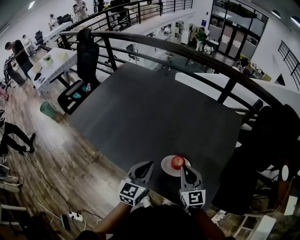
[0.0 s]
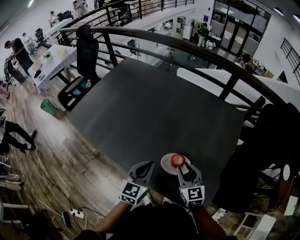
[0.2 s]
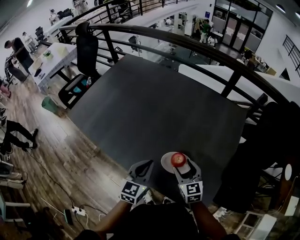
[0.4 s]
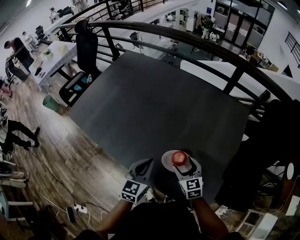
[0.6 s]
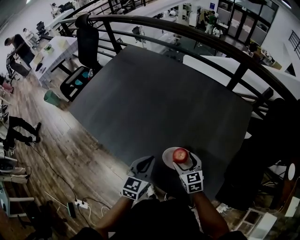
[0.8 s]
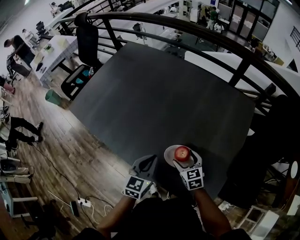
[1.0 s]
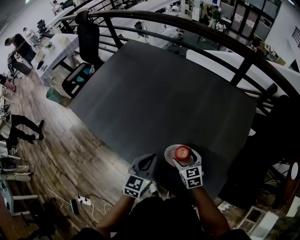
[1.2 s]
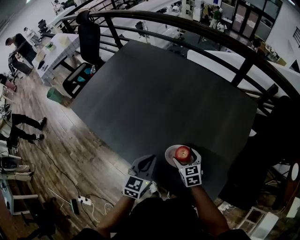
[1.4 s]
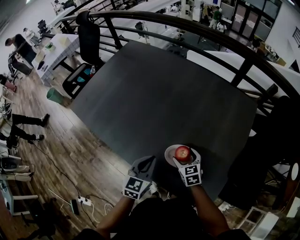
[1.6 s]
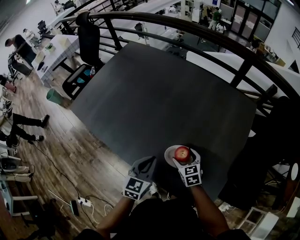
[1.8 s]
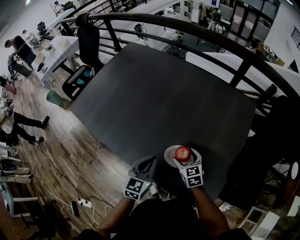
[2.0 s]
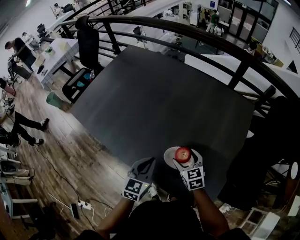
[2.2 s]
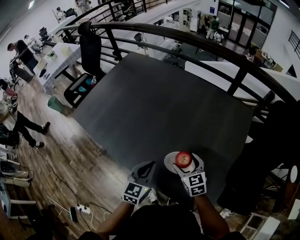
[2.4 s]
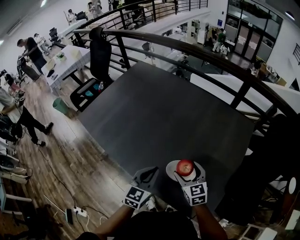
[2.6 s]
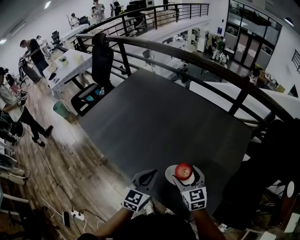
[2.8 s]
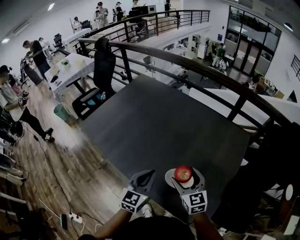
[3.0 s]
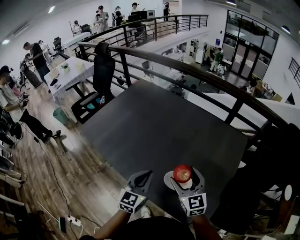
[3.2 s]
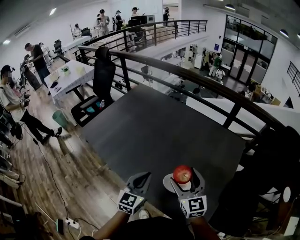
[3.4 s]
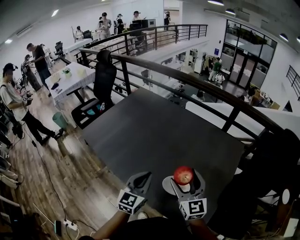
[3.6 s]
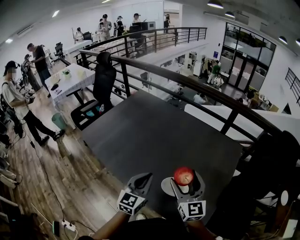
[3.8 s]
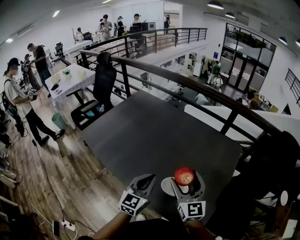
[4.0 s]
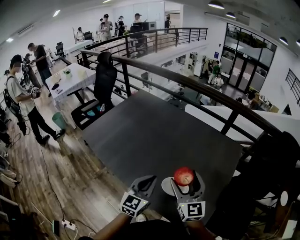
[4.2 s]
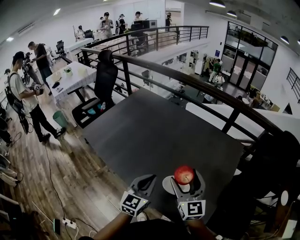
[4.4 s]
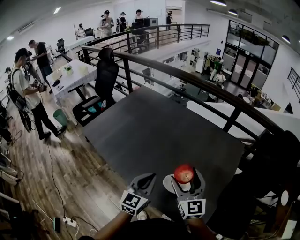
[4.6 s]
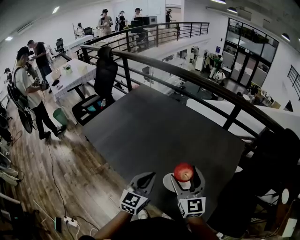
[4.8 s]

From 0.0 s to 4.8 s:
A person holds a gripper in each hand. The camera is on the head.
From 0.0 s to 1.6 s: The right gripper goes roughly 15 cm downward, rotates about 30 degrees, and opens up, while the left gripper moves downward, about 10 cm.
From 1.6 s to 3.2 s: The left gripper heads upward, covering about 10 cm. Meanwhile the right gripper shifts some 25 cm upward, and turns by about 30 degrees.
From 3.2 s to 4.8 s: The right gripper goes about 5 cm upward.

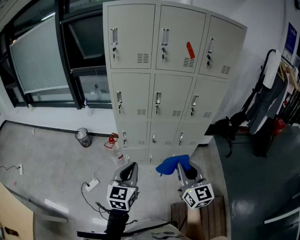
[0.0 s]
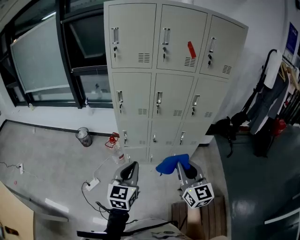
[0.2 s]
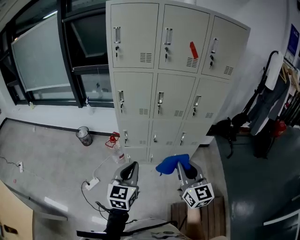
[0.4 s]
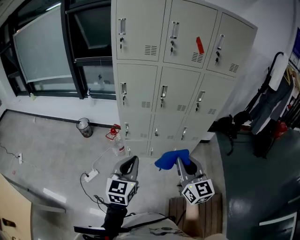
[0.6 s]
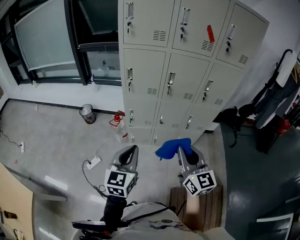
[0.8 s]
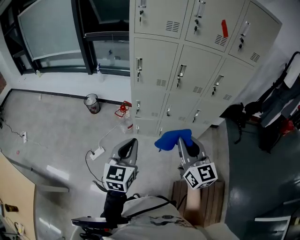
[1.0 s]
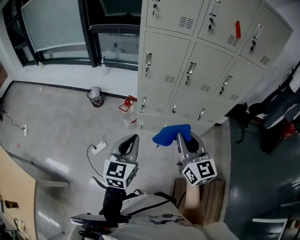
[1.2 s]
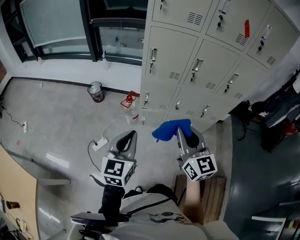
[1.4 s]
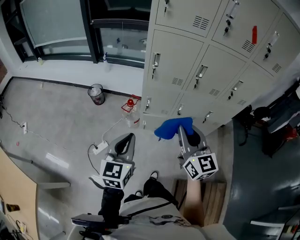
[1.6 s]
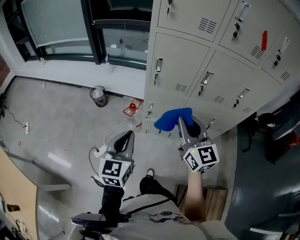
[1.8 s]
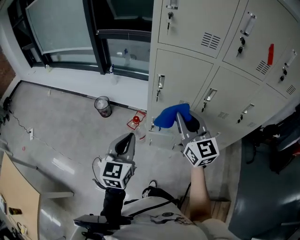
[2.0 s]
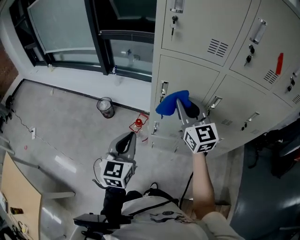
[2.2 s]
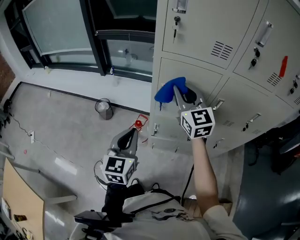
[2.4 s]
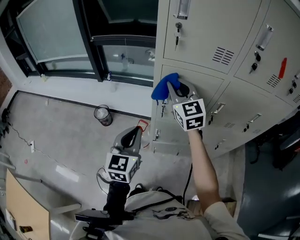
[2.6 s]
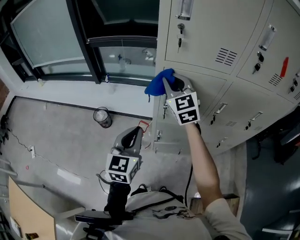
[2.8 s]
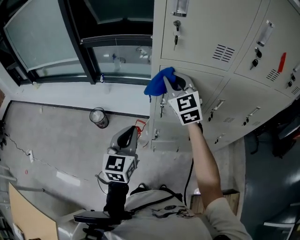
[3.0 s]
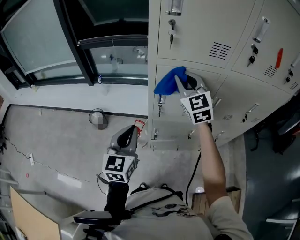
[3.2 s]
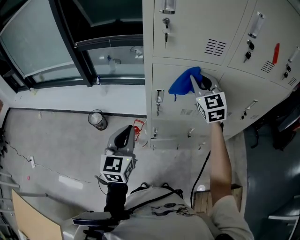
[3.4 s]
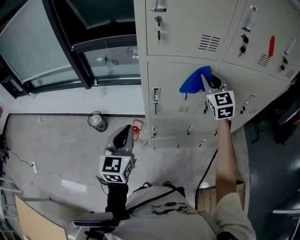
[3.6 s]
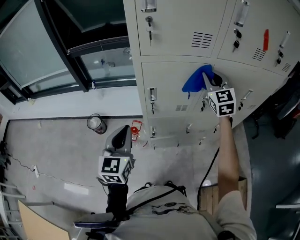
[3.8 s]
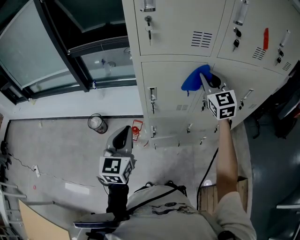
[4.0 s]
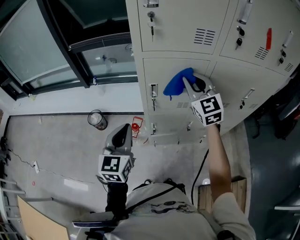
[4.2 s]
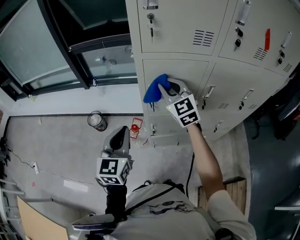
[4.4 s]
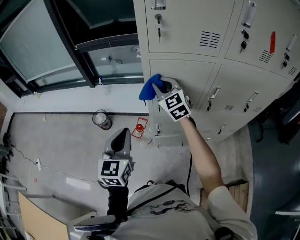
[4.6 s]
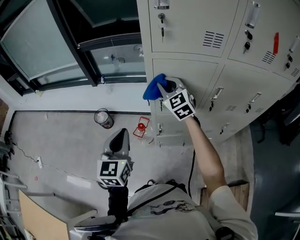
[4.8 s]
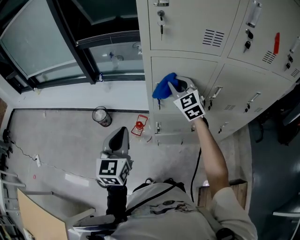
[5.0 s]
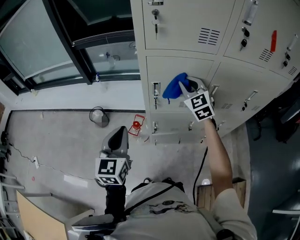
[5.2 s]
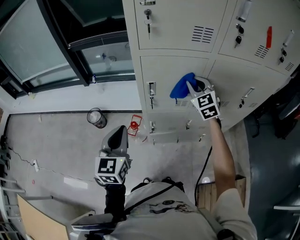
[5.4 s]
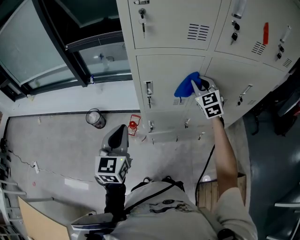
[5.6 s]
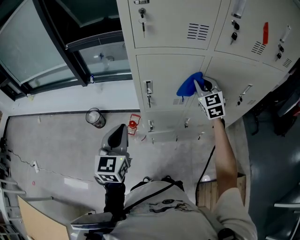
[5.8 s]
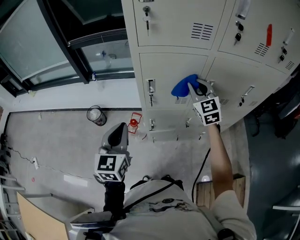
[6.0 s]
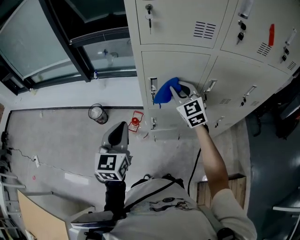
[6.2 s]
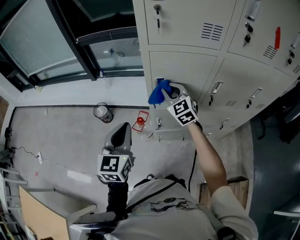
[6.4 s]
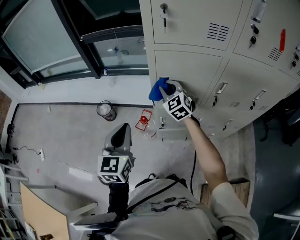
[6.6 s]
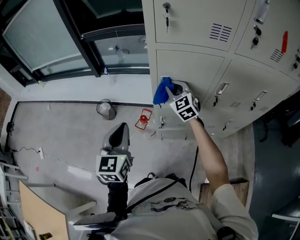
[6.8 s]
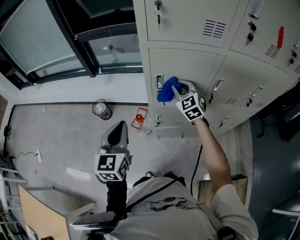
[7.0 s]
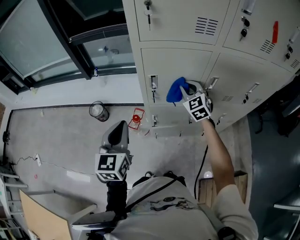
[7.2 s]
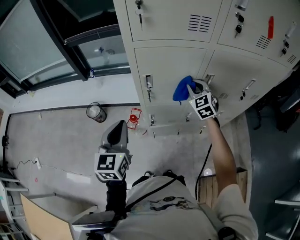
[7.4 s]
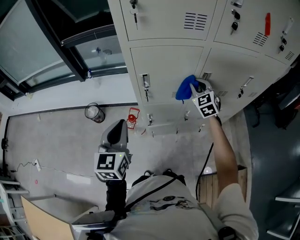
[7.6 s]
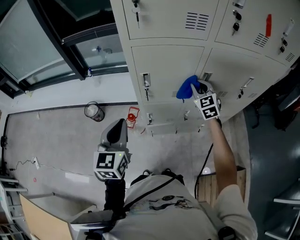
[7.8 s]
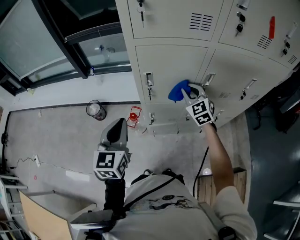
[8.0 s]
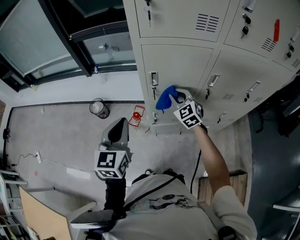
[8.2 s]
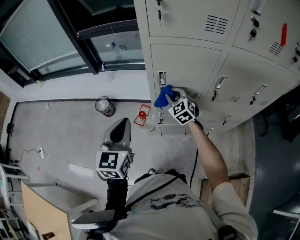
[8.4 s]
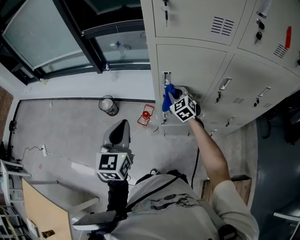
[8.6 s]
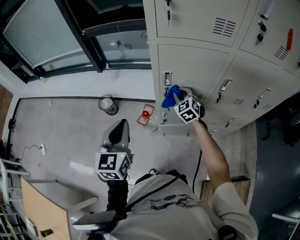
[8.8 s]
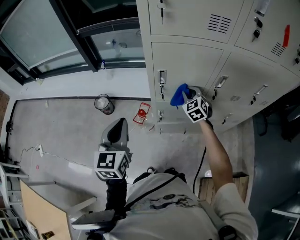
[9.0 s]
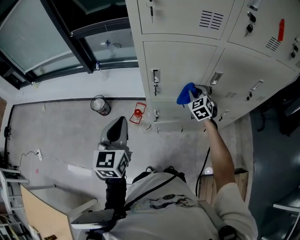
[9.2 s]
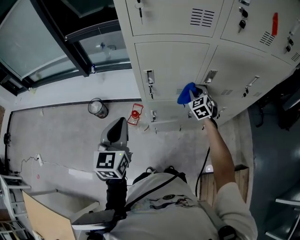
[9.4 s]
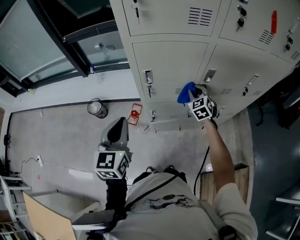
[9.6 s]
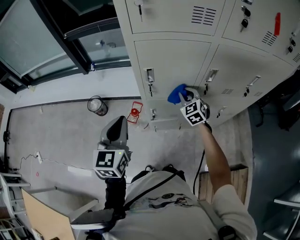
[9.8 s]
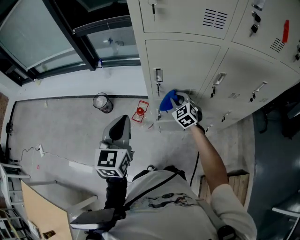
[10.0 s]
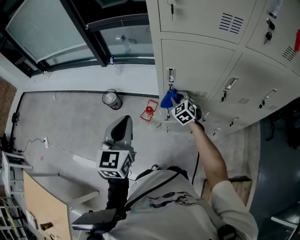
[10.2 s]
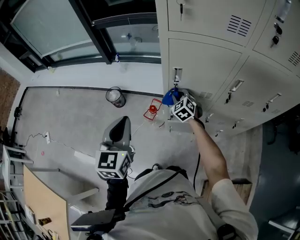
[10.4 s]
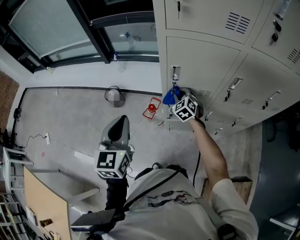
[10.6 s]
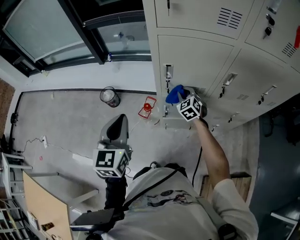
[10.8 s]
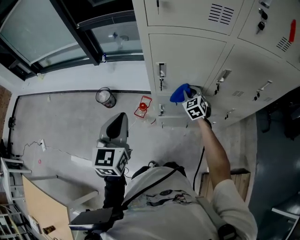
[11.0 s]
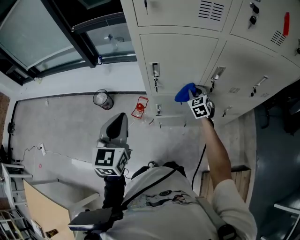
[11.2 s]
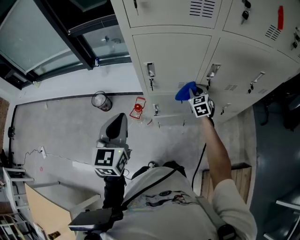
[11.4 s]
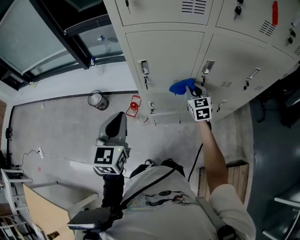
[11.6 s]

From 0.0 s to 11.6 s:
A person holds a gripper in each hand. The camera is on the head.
From 0.0 s to 1.4 s: The left gripper is displaced to the left by approximately 15 cm; the right gripper goes some 20 cm to the left and forward.
From 1.4 s to 2.8 s: The left gripper moves forward, some 30 cm. The right gripper heads forward, covering some 50 cm, and swivels some 20 degrees.
From 2.8 s to 4.4 s: The right gripper reaches some 25 cm to the right, then returns.
From 4.4 s to 5.8 s: The right gripper is displaced to the right by roughly 20 cm.
From 5.8 s to 7.2 s: The right gripper shifts roughly 10 cm to the left and downward.
From 7.2 s to 8.8 s: The right gripper goes some 10 cm to the left and downward.
From 8.8 s to 10.2 s: The right gripper goes approximately 5 cm downward, and moves roughly 15 cm to the right and comes back.
From 10.2 s to 11.6 s: The left gripper heads to the right, covering roughly 5 cm. Meanwhile the right gripper heads to the right, covering some 20 cm, and swivels roughly 30 degrees.

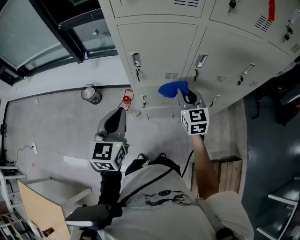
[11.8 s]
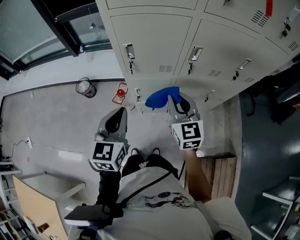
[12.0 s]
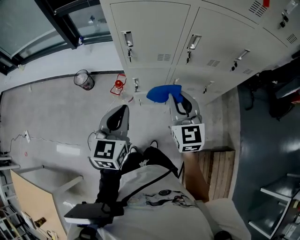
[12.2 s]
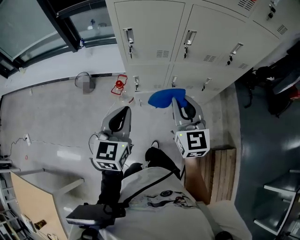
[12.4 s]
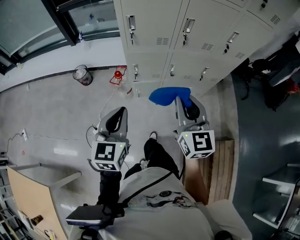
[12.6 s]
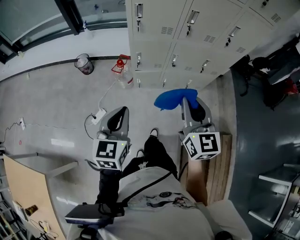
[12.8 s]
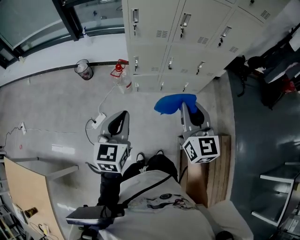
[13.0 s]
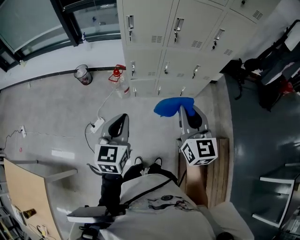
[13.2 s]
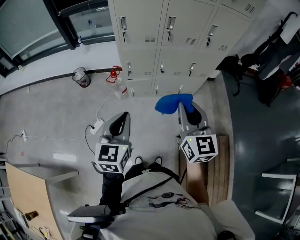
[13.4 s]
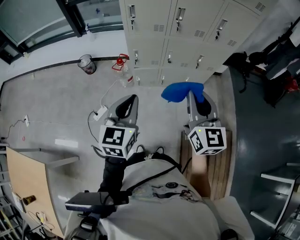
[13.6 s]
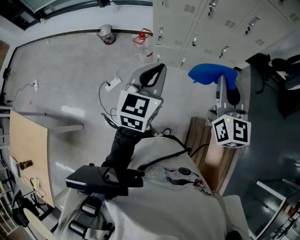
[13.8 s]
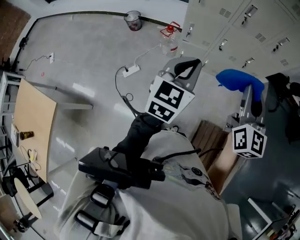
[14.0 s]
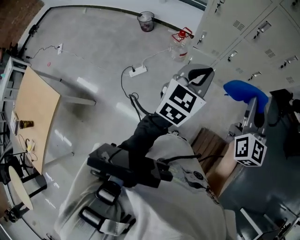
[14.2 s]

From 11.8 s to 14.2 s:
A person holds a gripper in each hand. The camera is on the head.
From 11.8 s to 13.0 s: The two grippers go about 35 cm backward.
From 13.0 s to 14.2 s: The left gripper moves to the right, approximately 10 cm. The right gripper moves some 5 cm.

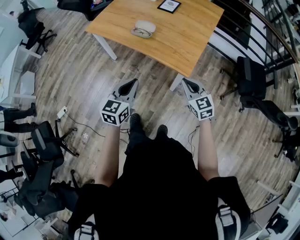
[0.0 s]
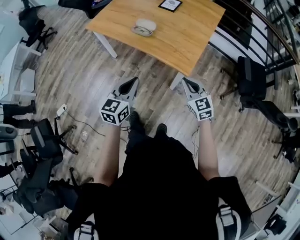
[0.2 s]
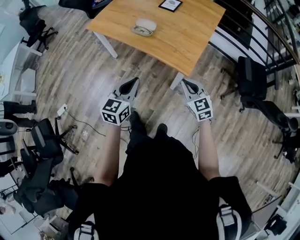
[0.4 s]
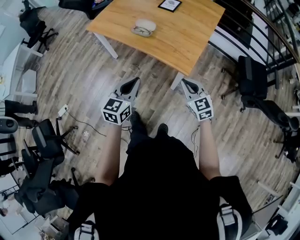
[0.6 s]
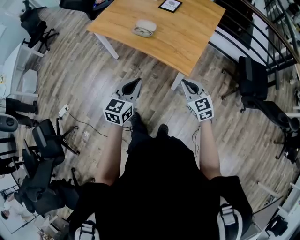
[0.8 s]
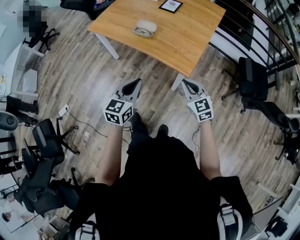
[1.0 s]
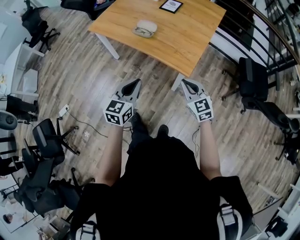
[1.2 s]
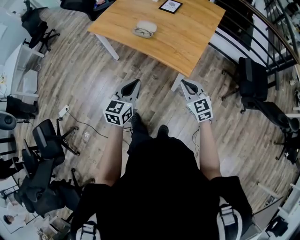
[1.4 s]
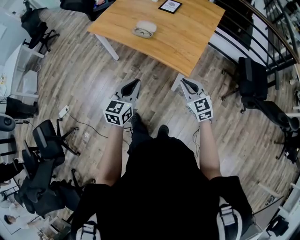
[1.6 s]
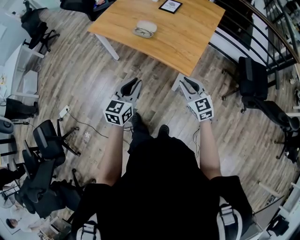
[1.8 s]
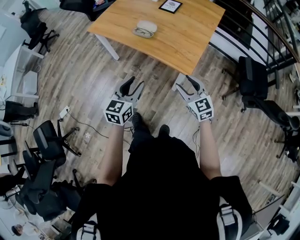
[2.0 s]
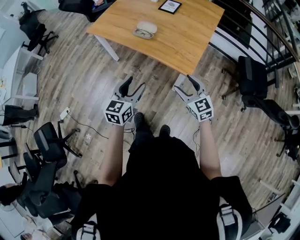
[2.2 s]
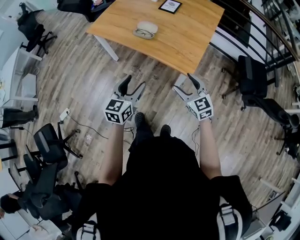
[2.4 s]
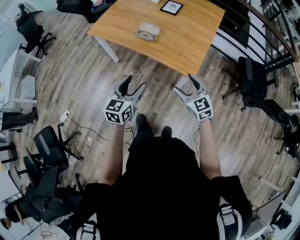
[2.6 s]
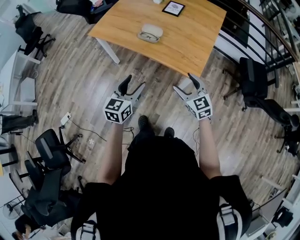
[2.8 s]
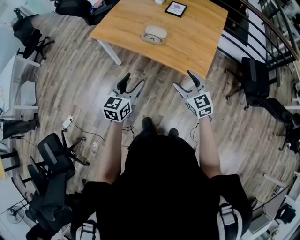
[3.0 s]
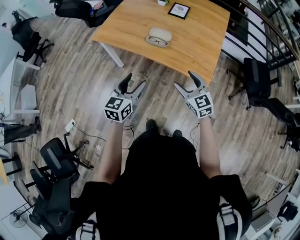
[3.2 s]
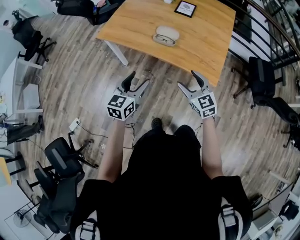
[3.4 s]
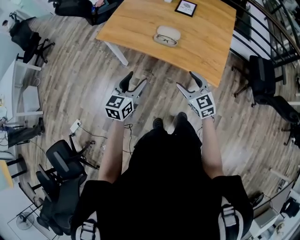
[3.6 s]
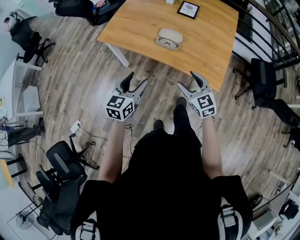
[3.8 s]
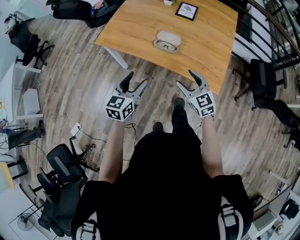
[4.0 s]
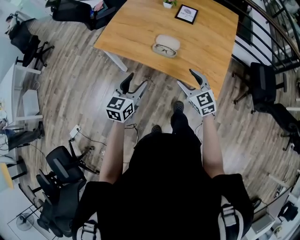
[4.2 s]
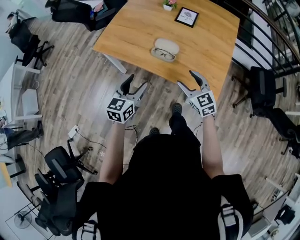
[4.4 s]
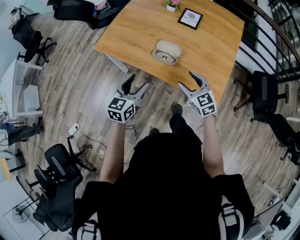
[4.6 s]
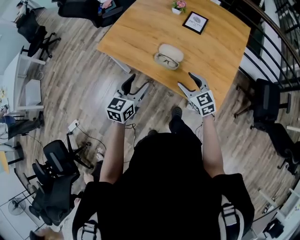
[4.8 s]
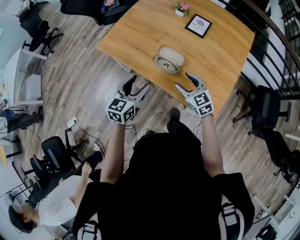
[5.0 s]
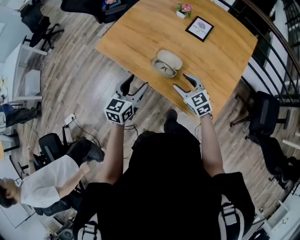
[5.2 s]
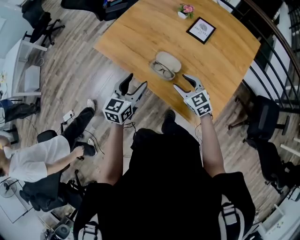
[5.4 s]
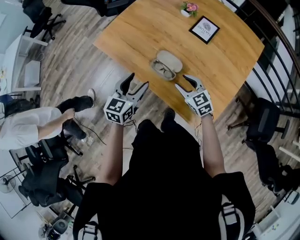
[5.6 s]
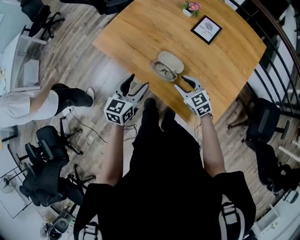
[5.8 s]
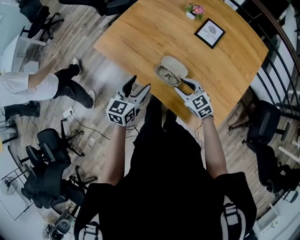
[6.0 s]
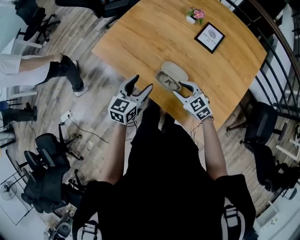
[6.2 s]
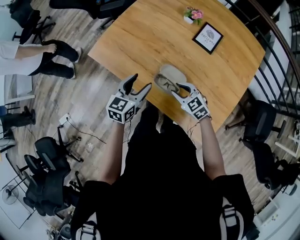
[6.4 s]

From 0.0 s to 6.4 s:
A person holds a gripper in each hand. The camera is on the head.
From 0.0 s to 1.6 s: The grippers make only small movements.
From 1.6 s to 3.2 s: Both grippers move to the left and forward, approximately 20 cm. The right gripper opens its fingers. Meanwhile the left gripper opens up.
From 3.2 s to 4.8 s: Both grippers move forward, roughly 20 cm.
From 4.8 s to 6.4 s: The left gripper moves forward, about 15 cm; the right gripper shifts approximately 15 cm forward and downward, and rotates some 30 degrees.
